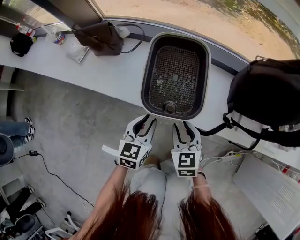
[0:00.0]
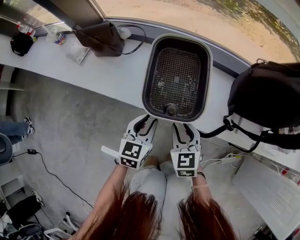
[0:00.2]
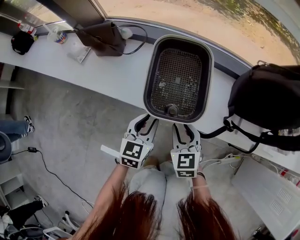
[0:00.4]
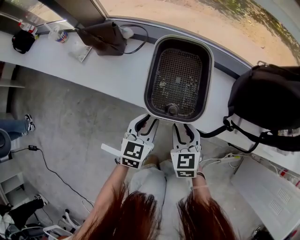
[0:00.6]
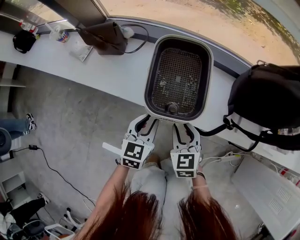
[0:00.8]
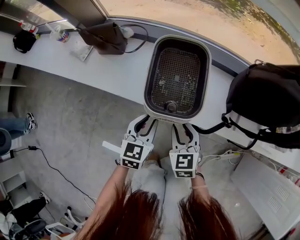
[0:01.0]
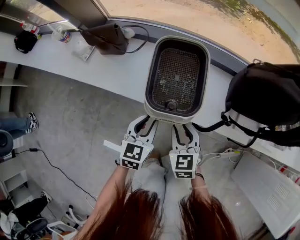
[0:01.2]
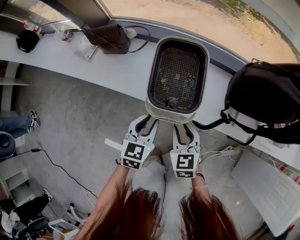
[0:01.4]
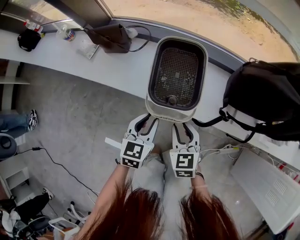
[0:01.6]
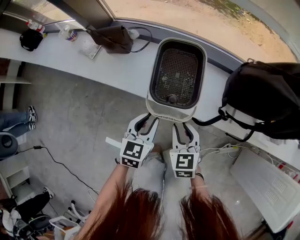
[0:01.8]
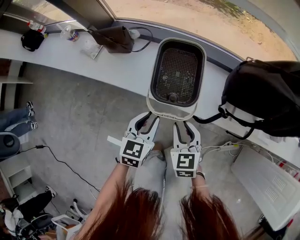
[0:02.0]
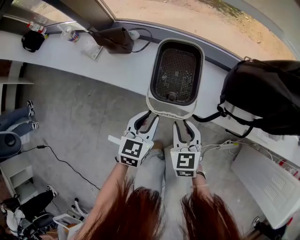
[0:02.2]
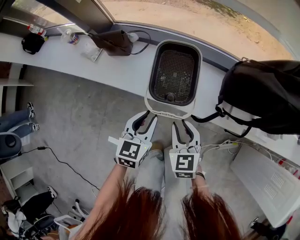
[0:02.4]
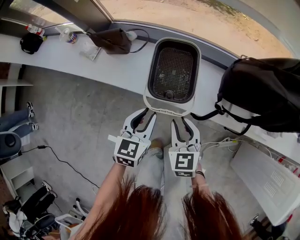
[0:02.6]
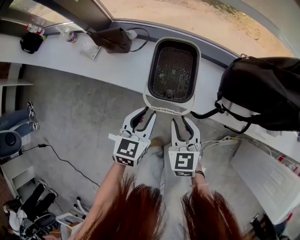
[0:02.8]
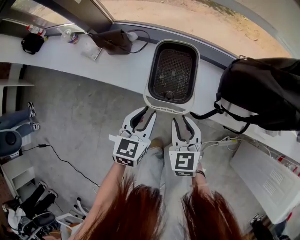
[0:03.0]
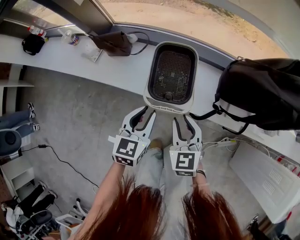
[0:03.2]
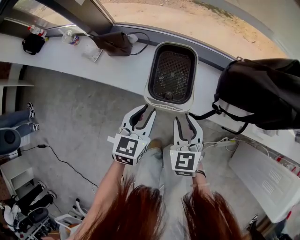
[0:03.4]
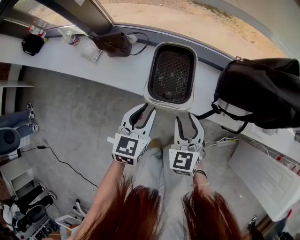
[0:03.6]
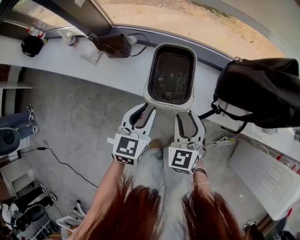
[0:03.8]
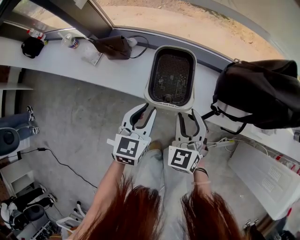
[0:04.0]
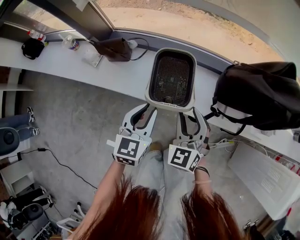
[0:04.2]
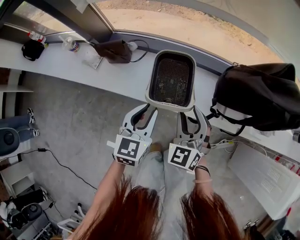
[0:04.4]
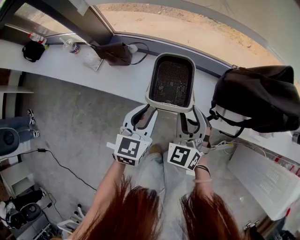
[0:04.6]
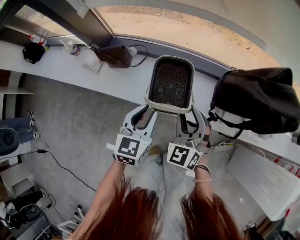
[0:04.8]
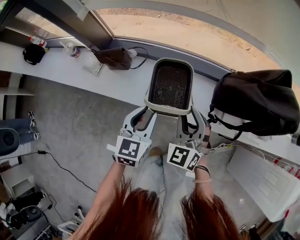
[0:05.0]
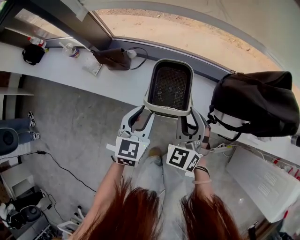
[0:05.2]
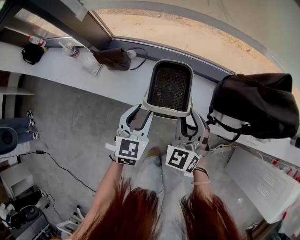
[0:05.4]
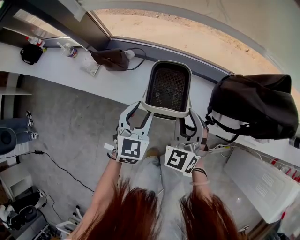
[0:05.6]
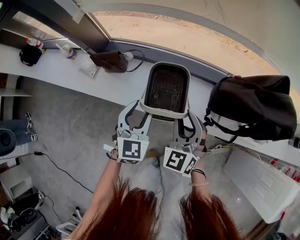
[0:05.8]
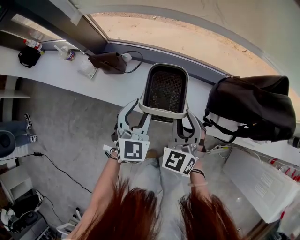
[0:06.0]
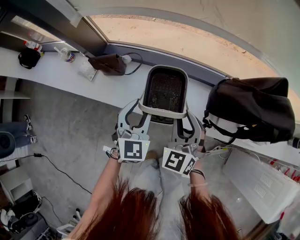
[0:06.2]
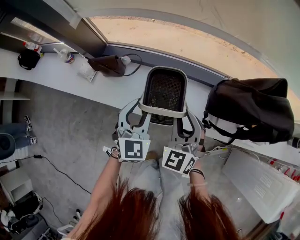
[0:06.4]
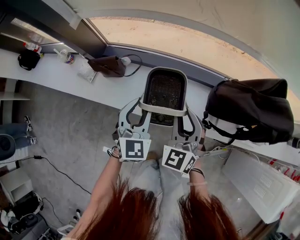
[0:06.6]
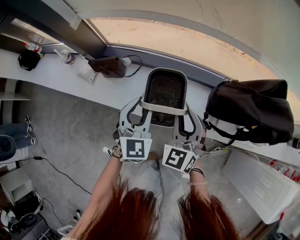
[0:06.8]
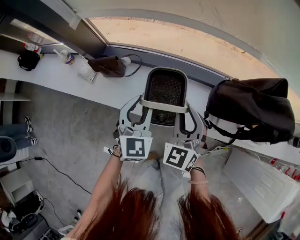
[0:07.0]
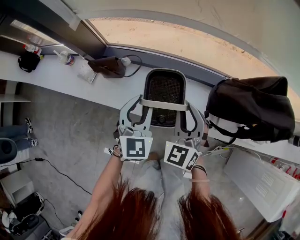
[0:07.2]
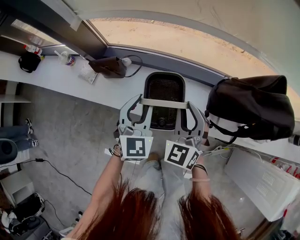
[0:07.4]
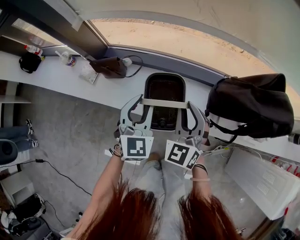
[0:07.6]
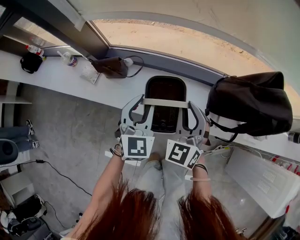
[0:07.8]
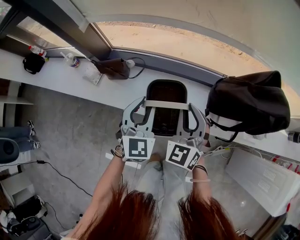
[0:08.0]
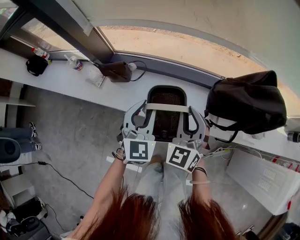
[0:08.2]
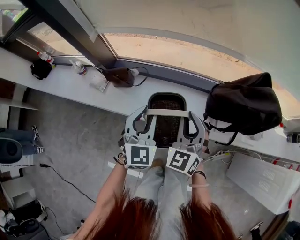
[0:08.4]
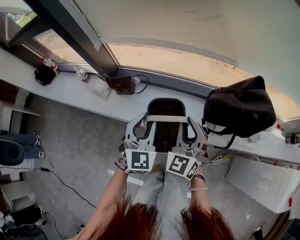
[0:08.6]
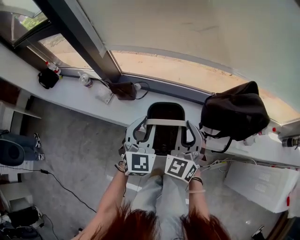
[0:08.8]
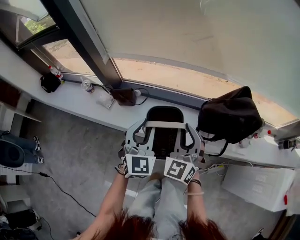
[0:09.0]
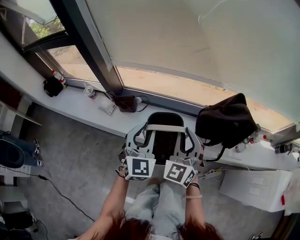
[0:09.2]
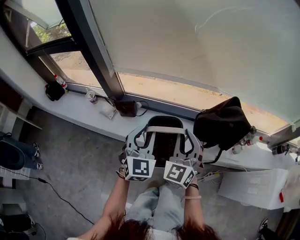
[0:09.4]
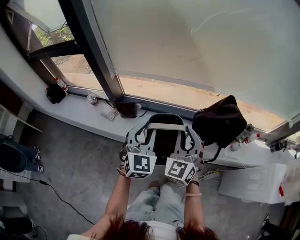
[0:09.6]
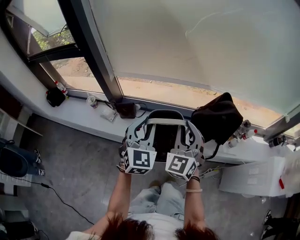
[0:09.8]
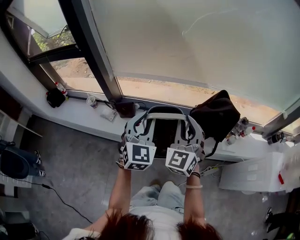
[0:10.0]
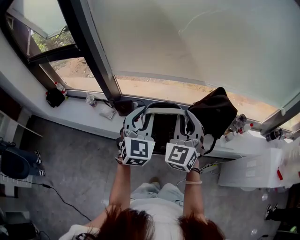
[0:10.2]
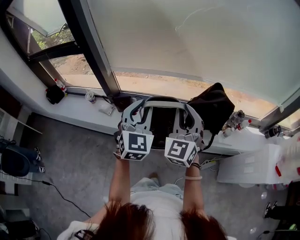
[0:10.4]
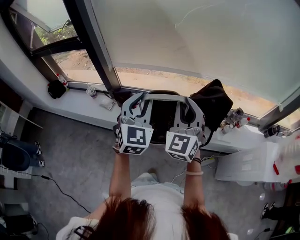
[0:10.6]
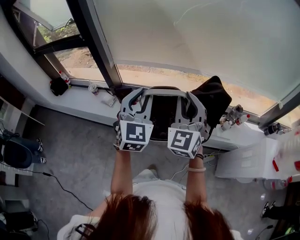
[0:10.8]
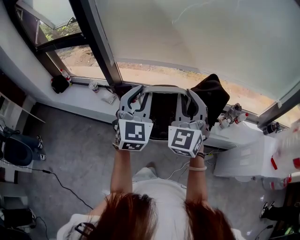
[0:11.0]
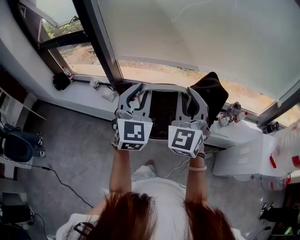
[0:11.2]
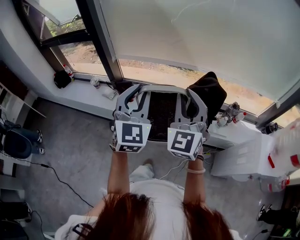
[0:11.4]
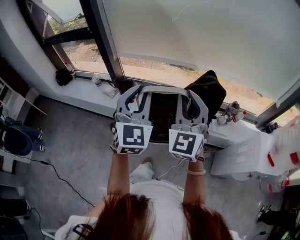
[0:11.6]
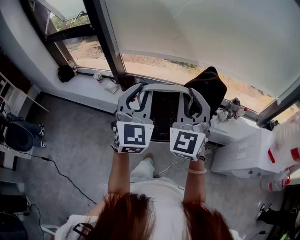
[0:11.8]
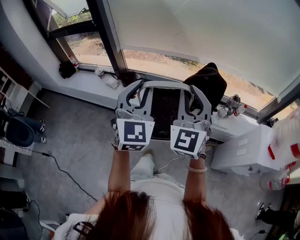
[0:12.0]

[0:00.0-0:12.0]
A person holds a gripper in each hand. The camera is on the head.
0:00.0 to 0:01.6: The grippers both shift upward by some 10 cm.
0:01.6 to 0:03.0: Both grippers travel together upward, approximately 10 cm.
0:03.0 to 0:04.4: The right gripper shifts about 10 cm upward and forward, and changes its angle by about 30 degrees; the left gripper moves upward, some 5 cm.
0:04.4 to 0:06.0: The left gripper is displaced forward by some 5 cm, and rotates some 20 degrees.
0:06.0 to 0:07.6: The grippers move only a little.
0:07.6 to 0:09.0: The grippers both shift upward and backward by roughly 20 cm.
0:09.0 to 0:10.4: The right gripper travels upward and backward by roughly 20 cm, while the left gripper is displaced upward by roughly 20 cm.
0:10.4 to 0:12.0: Both grippers move backward and upward, about 20 cm.

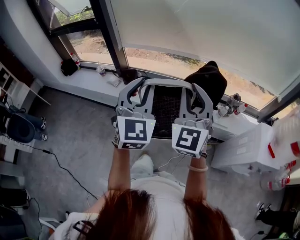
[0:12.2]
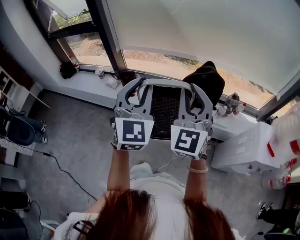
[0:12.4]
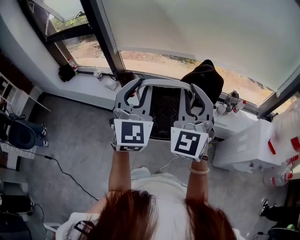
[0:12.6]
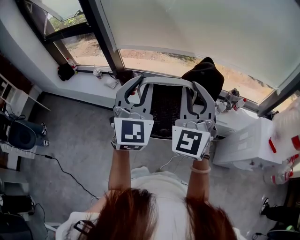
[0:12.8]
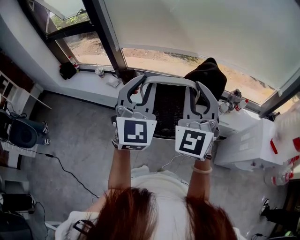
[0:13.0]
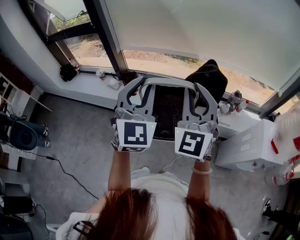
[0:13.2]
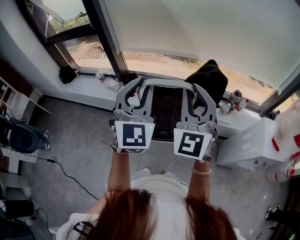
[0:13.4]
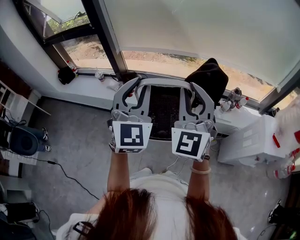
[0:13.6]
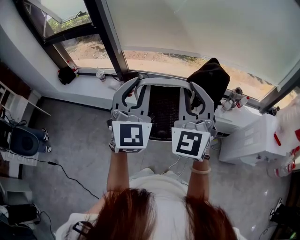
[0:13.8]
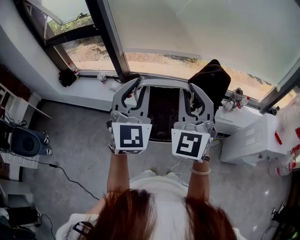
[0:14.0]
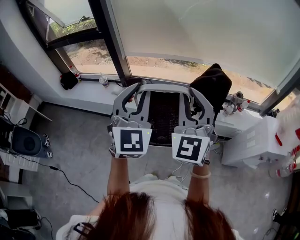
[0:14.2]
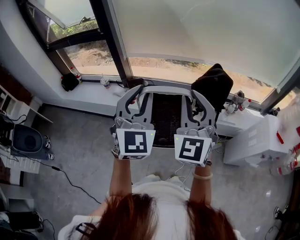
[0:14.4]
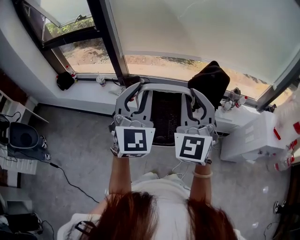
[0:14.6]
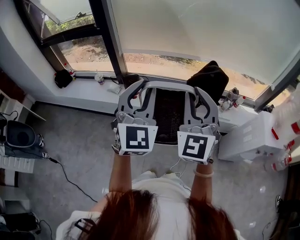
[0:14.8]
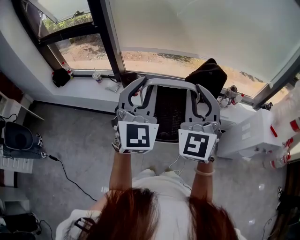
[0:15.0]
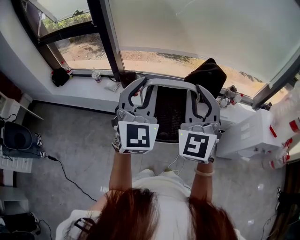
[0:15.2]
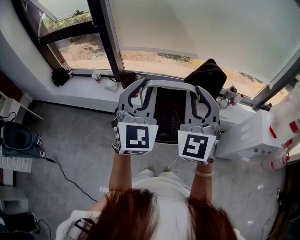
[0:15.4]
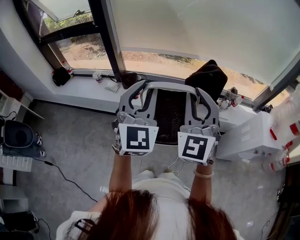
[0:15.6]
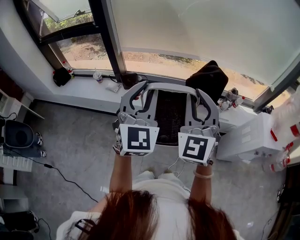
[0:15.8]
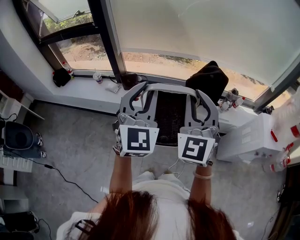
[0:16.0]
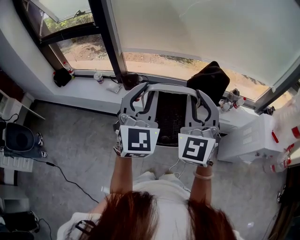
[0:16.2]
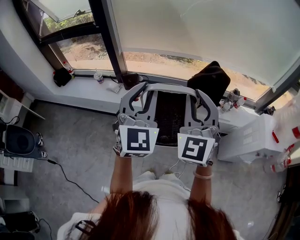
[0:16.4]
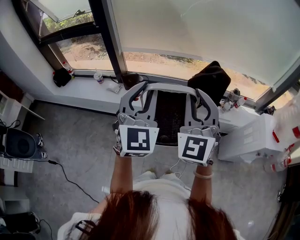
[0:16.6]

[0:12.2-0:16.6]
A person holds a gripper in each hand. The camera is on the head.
0:12.2 to 0:13.6: The right gripper moves some 5 cm. Meanwhile the left gripper shifts by roughly 5 cm.
0:13.6 to 0:15.2: The two grippers go roughly 5 cm to the left.
0:15.2 to 0:16.6: The grippers move only a little.

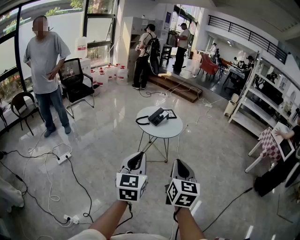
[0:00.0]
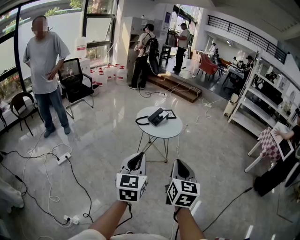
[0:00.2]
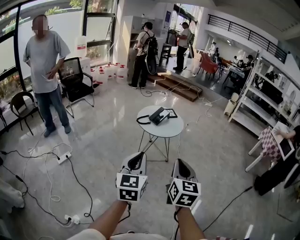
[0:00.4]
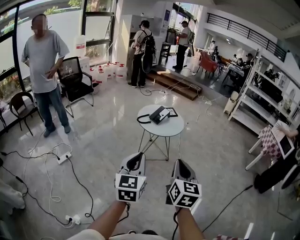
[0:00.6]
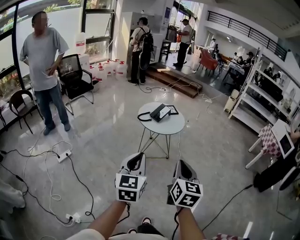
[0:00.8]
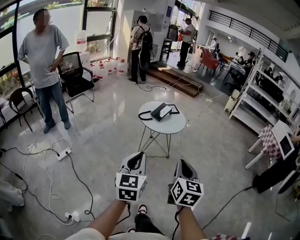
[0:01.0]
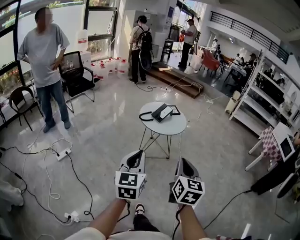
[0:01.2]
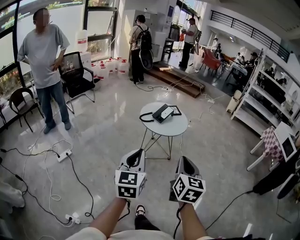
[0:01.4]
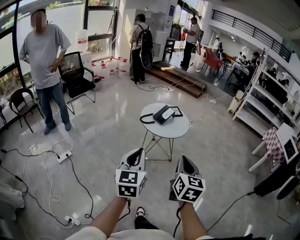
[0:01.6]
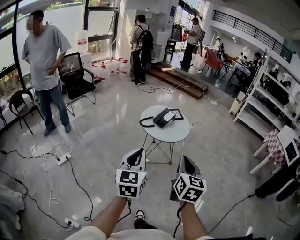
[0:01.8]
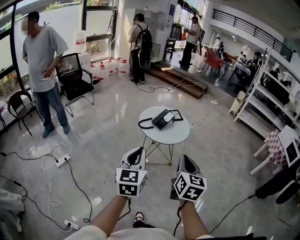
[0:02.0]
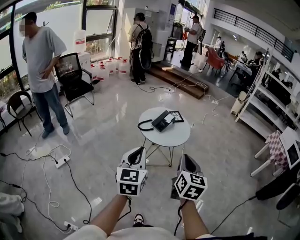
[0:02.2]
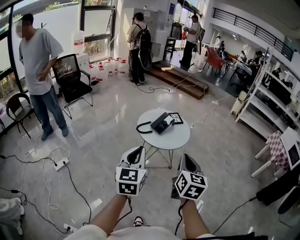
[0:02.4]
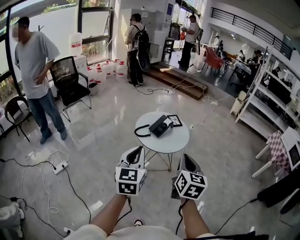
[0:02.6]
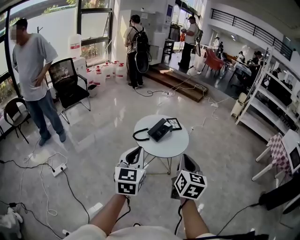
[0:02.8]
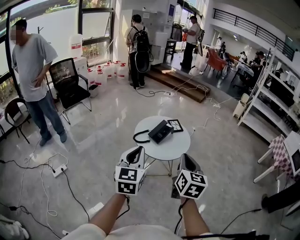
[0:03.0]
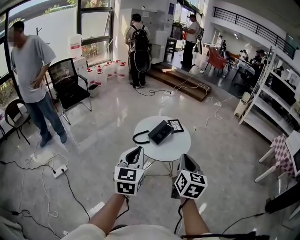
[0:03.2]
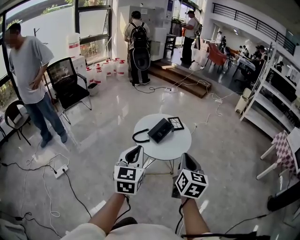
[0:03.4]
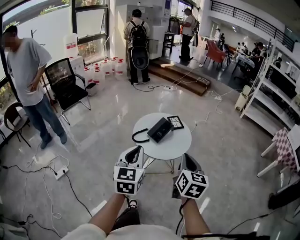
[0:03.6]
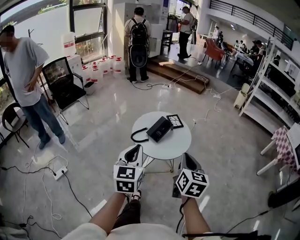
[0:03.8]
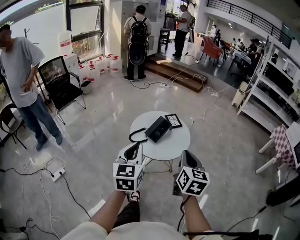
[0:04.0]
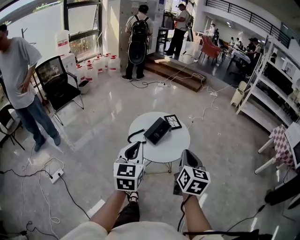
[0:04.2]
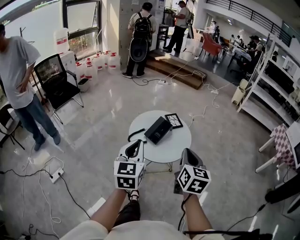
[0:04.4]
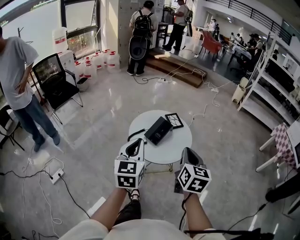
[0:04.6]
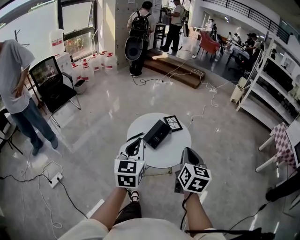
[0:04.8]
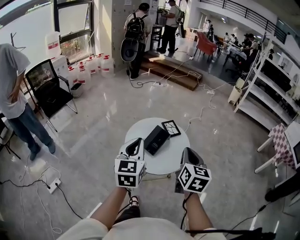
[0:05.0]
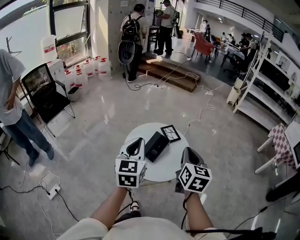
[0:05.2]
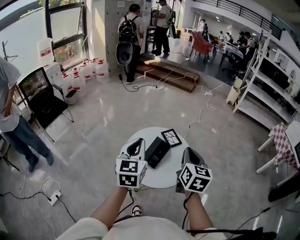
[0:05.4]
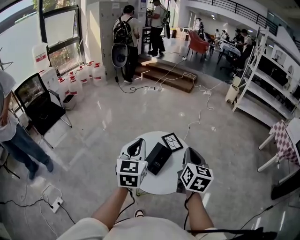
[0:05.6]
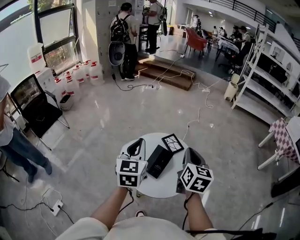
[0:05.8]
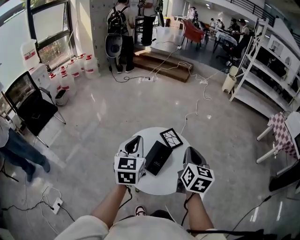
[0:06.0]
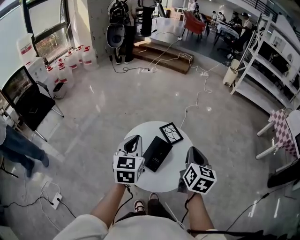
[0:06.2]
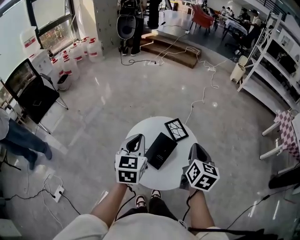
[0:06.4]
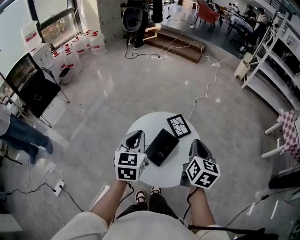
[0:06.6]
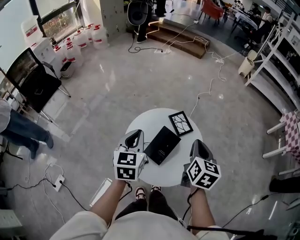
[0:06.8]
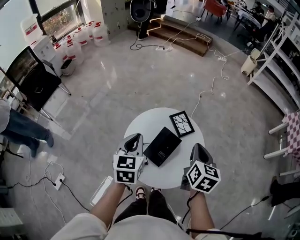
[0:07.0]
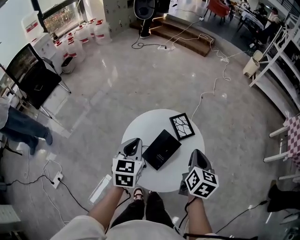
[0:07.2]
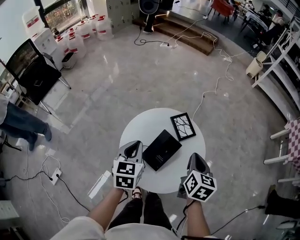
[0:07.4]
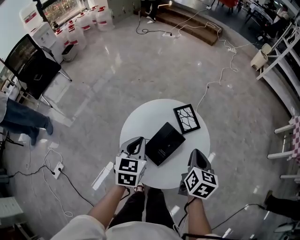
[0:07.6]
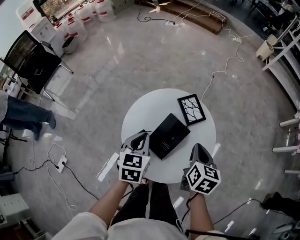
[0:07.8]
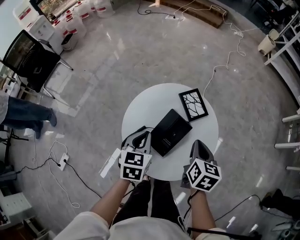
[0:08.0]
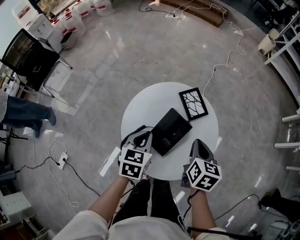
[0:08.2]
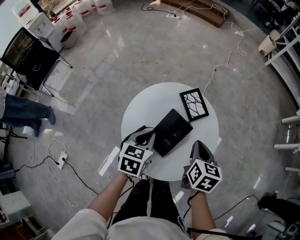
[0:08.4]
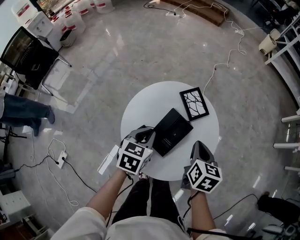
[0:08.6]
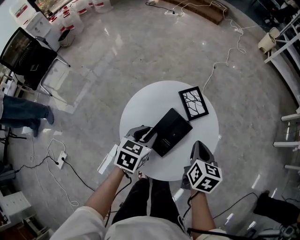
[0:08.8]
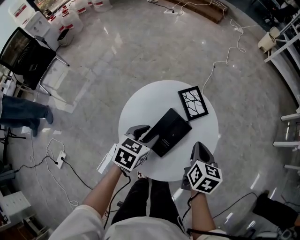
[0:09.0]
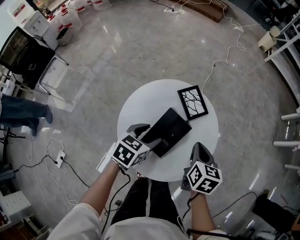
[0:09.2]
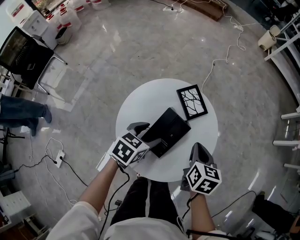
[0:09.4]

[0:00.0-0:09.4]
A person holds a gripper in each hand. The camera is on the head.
0:00.0 to 0:01.6: Both grippers move forward, approximately 5 cm.
0:01.6 to 0:03.2: The grippers both shift forward by some 25 cm.
0:03.2 to 0:04.8: The two grippers go approximately 15 cm forward.
0:04.8 to 0:06.2: The two grippers go approximately 20 cm forward.
0:06.2 to 0:07.8: The grippers both shift downward by about 15 cm. The left gripper changes its angle by about 20 degrees.
0:07.8 to 0:09.4: The left gripper moves downward, some 5 cm, turns by approximately 30 degrees, and opens.
